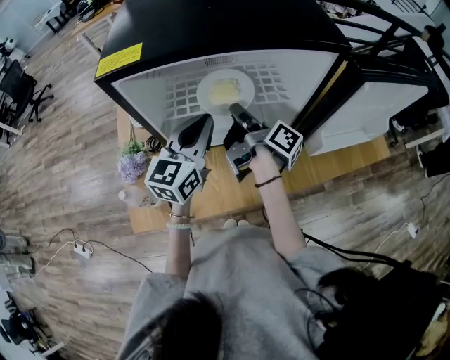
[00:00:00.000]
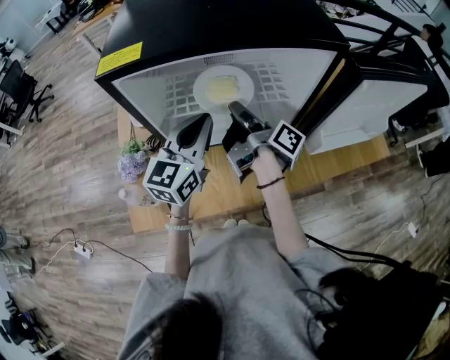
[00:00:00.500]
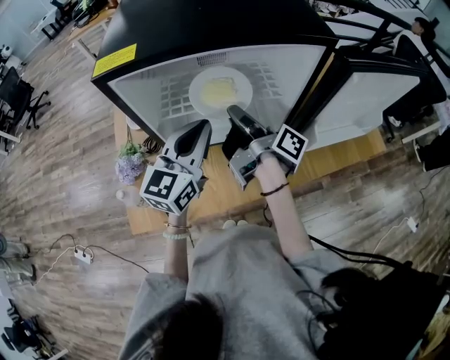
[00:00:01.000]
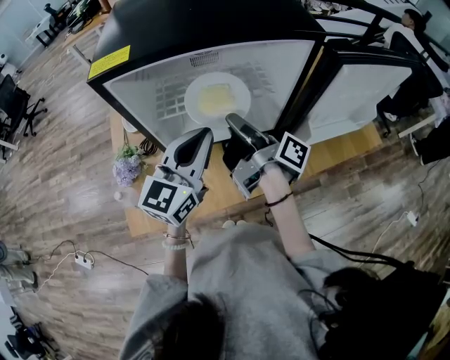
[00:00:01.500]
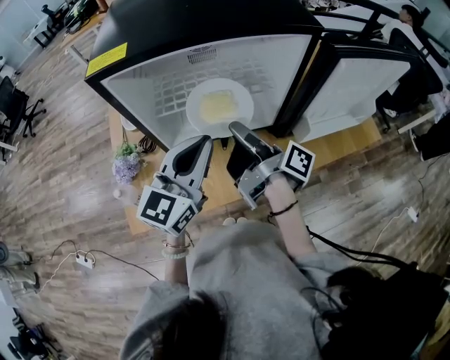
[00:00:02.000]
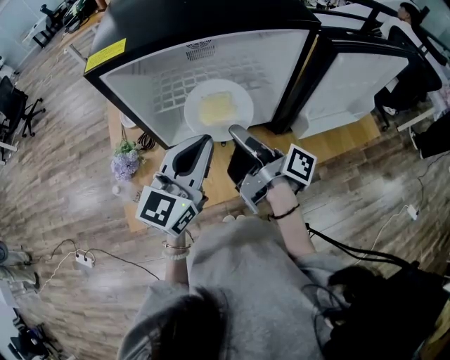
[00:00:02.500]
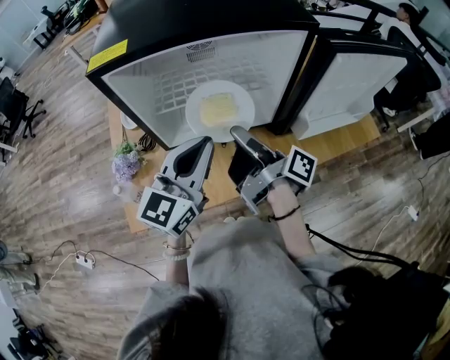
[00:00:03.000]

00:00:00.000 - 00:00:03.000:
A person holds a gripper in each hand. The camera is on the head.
00:00:00.000 - 00:00:01.500: The grippers both shift backward by approximately 5 cm.
00:00:01.500 - 00:00:03.000: The right gripper is displaced backward by about 5 cm.

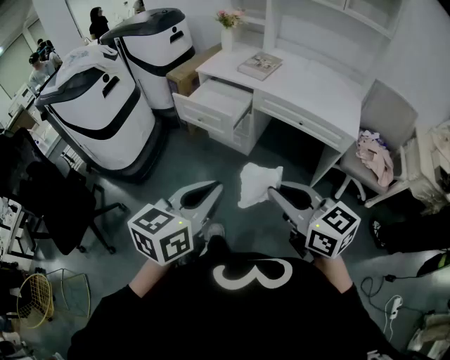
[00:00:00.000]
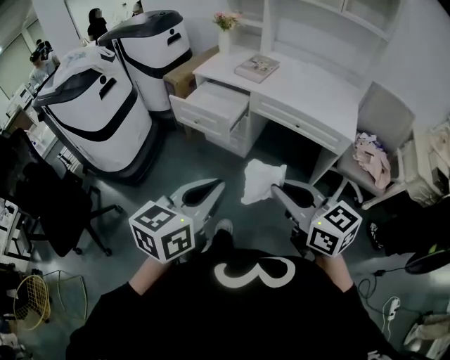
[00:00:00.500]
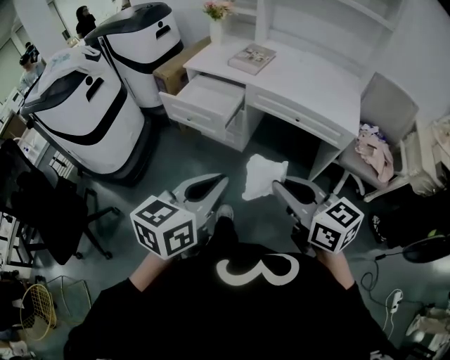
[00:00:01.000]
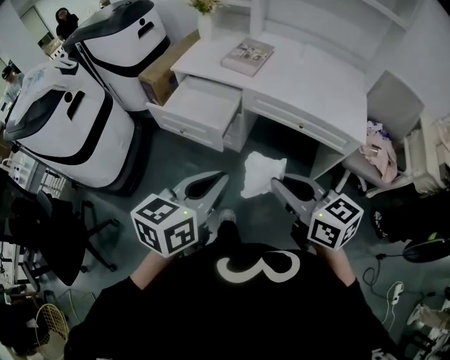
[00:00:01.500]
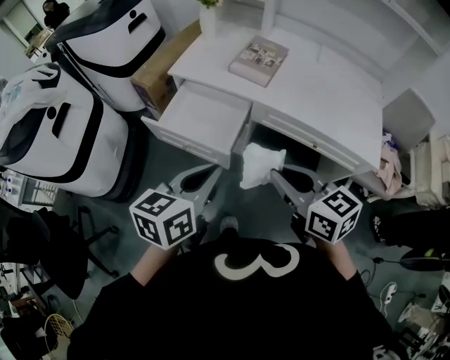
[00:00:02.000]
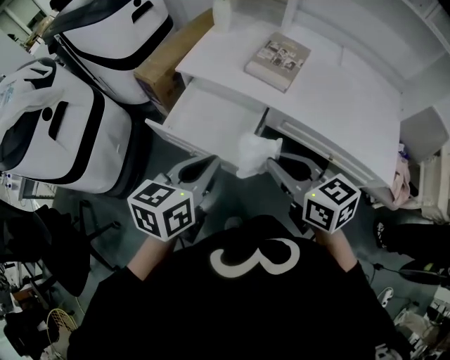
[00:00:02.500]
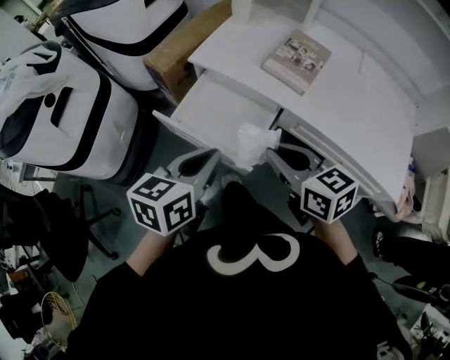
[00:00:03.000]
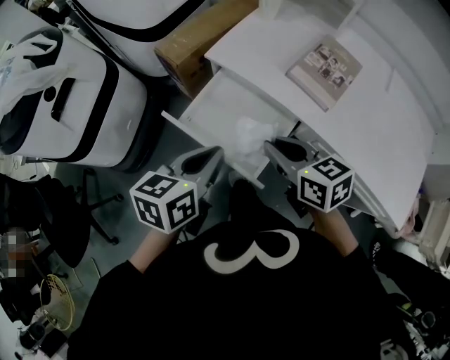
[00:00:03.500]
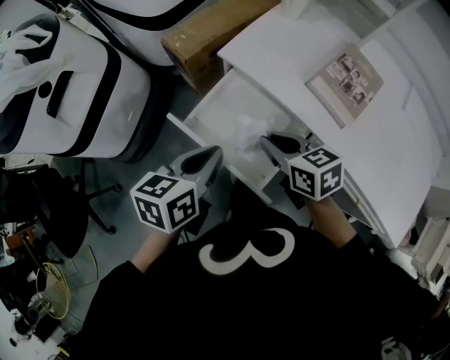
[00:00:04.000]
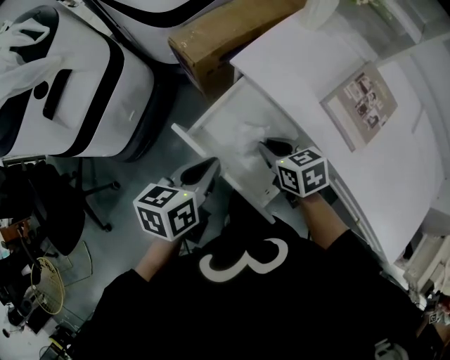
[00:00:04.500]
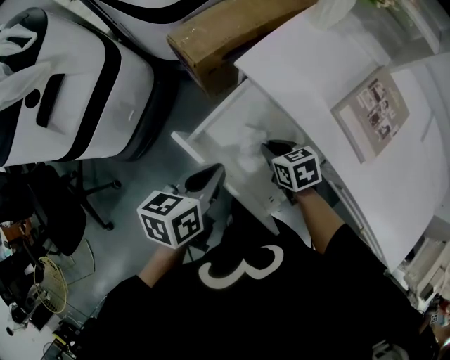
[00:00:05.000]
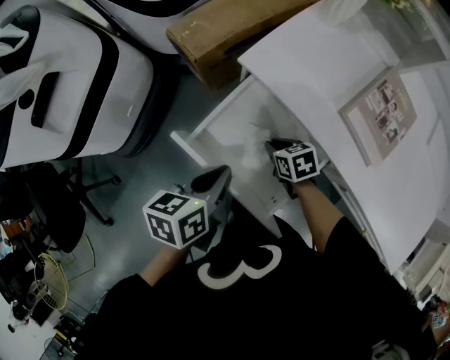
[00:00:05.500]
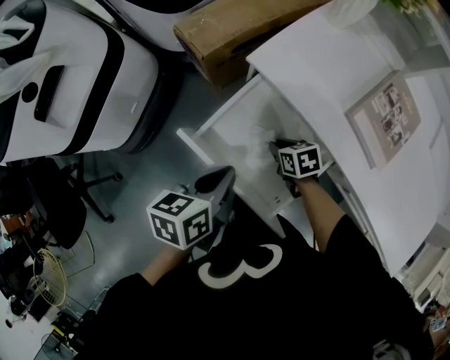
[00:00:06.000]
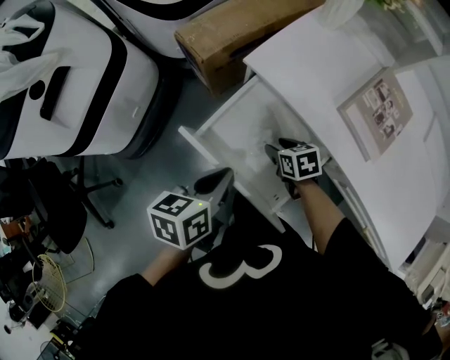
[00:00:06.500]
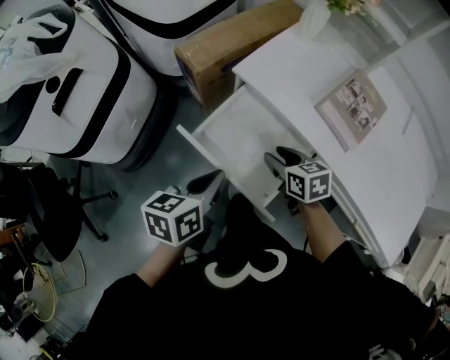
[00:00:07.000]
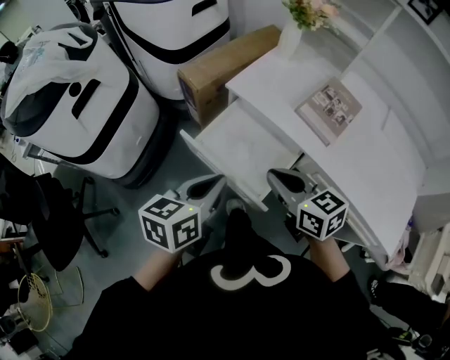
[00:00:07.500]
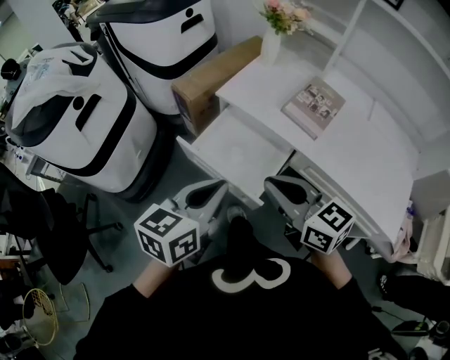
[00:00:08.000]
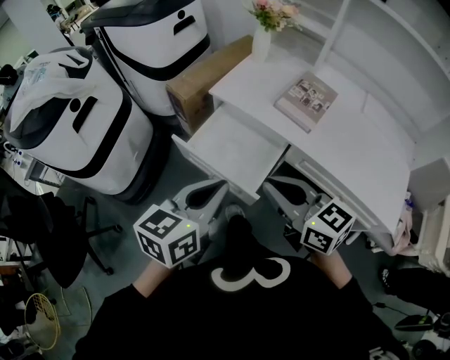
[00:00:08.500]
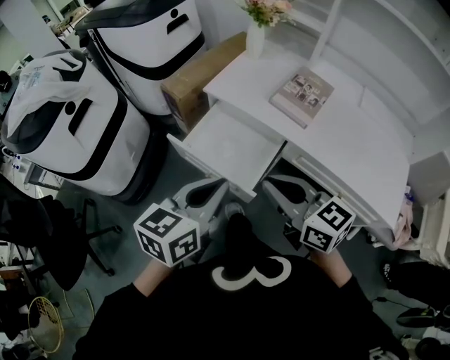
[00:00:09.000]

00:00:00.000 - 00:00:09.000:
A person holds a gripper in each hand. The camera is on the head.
00:00:00.000 - 00:00:02.000: The grippers both shift forward by roughly 40 cm.
00:00:02.000 - 00:00:04.500: The left gripper heads forward, downward and to the left, covering about 35 cm, and rotates some 30 degrees; the right gripper is displaced forward and downward by approximately 40 cm, and swivels some 30 degrees.
00:00:04.500 - 00:00:07.000: The right gripper reaches about 15 cm downward, then returns, and opens.
00:00:07.000 - 00:00:09.000: The left gripper goes roughly 20 cm upward, backward and to the right, and turns by some 30 degrees, while the right gripper shifts roughly 30 cm upward and backward, angles its fingers upward, by some 30 degrees, and closes its fingers.

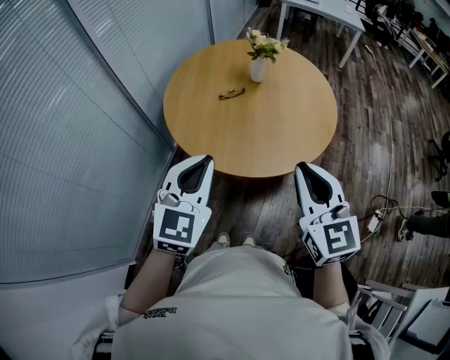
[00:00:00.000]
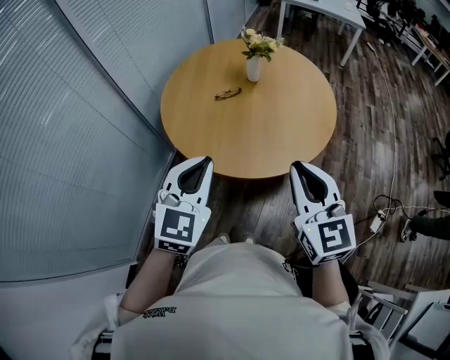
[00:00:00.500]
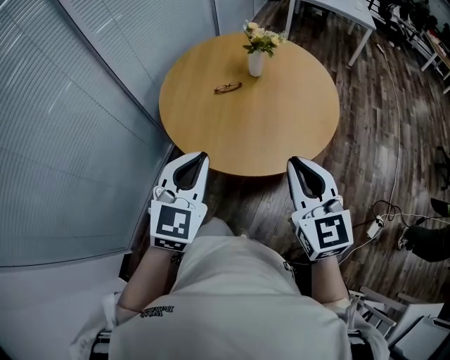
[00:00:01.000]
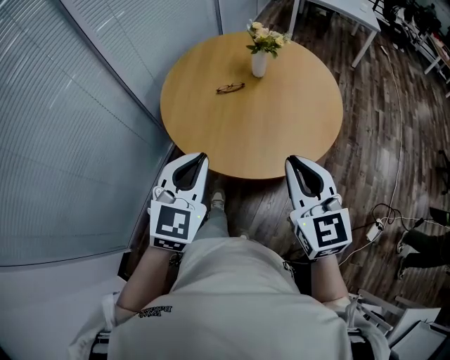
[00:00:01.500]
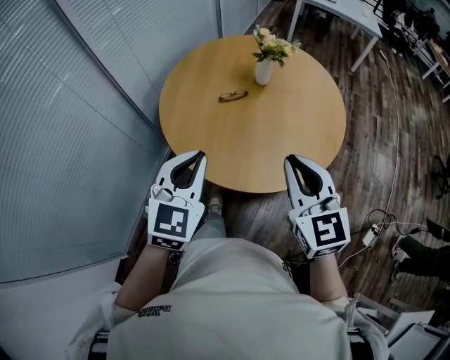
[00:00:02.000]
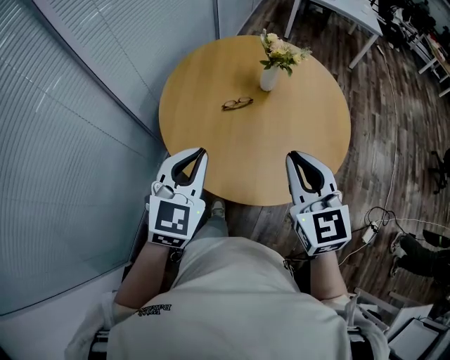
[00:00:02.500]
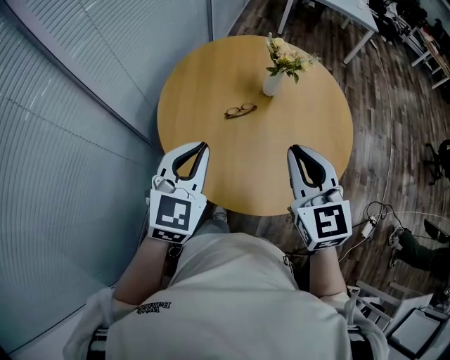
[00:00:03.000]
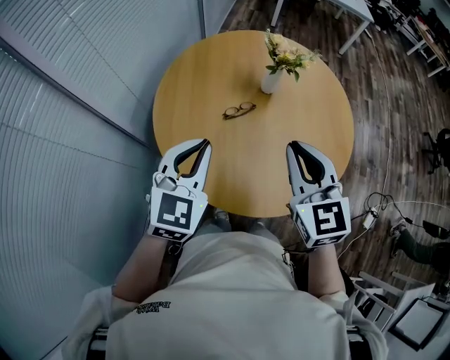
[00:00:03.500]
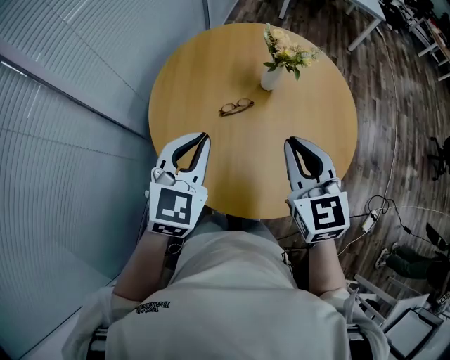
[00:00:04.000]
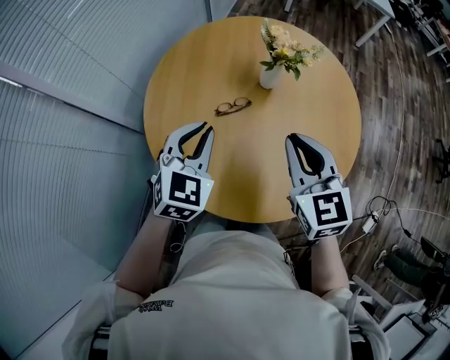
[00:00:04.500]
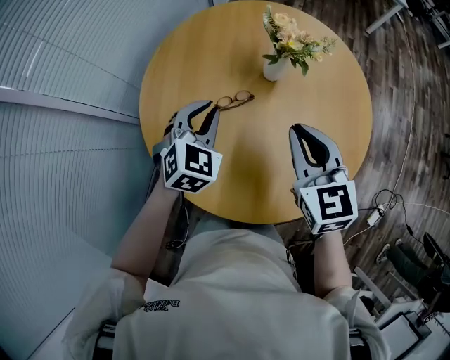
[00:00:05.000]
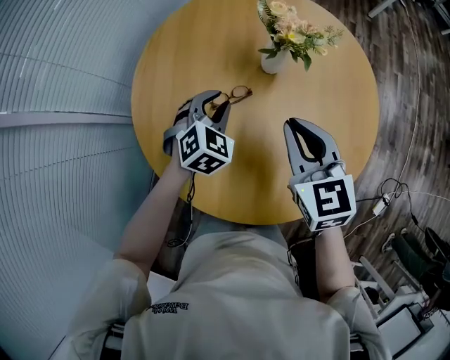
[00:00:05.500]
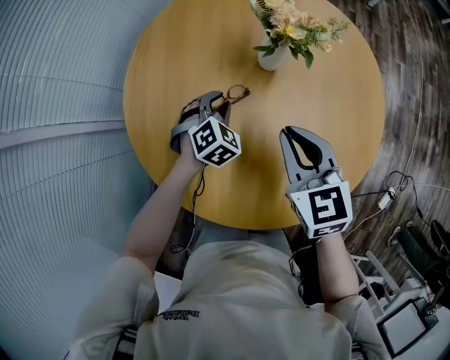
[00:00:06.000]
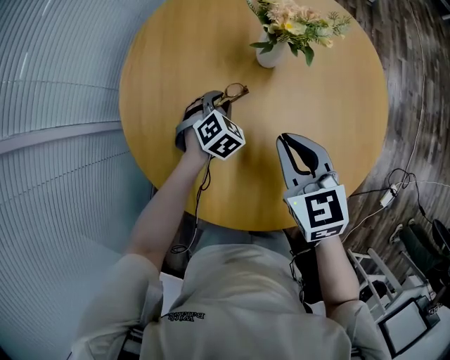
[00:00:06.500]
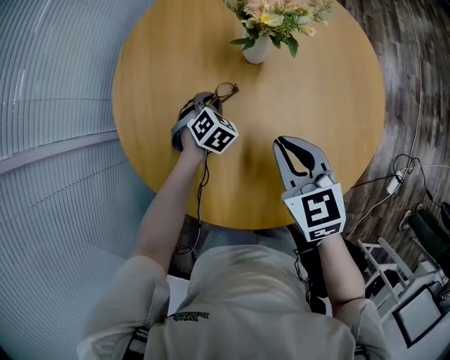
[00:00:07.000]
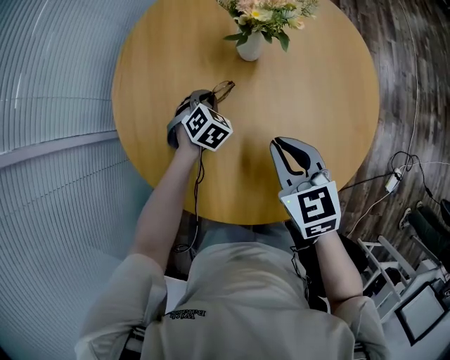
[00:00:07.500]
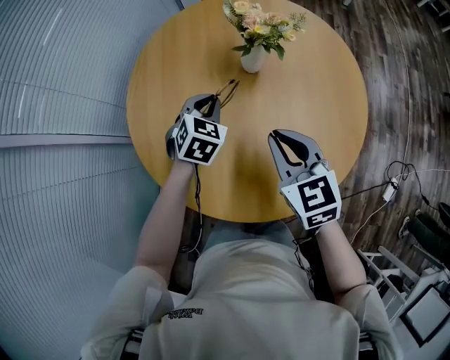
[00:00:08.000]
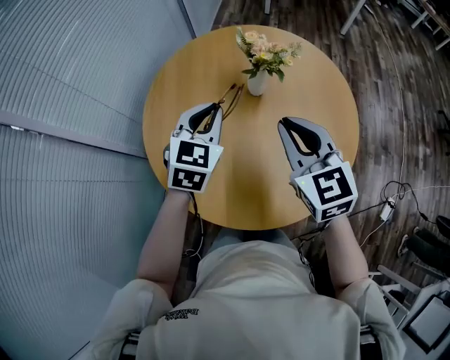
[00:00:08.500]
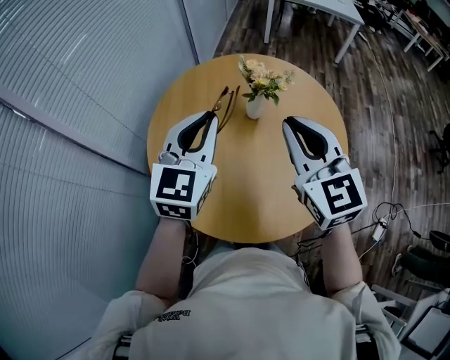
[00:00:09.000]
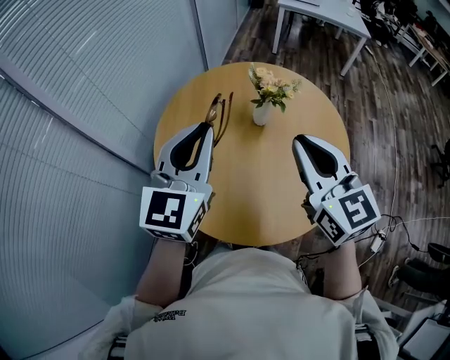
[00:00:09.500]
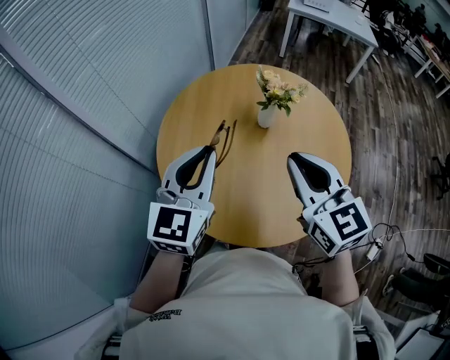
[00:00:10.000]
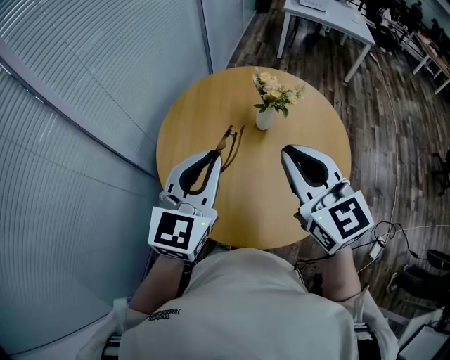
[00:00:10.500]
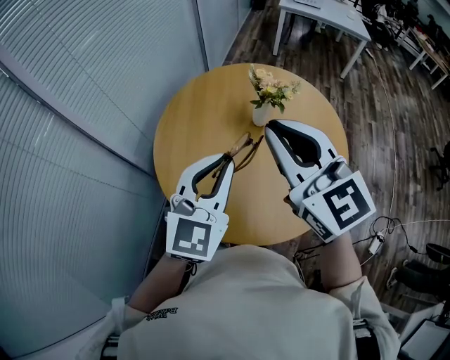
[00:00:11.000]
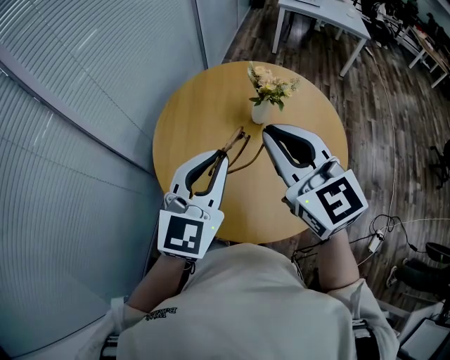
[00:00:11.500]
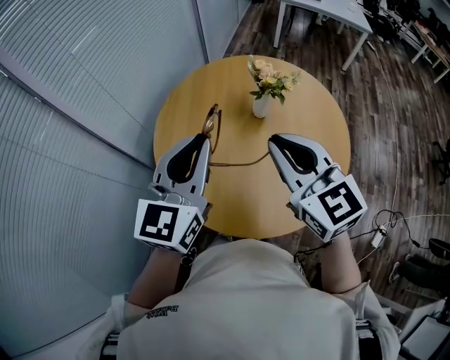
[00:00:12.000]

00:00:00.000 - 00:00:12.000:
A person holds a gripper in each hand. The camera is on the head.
00:00:00.000 - 00:00:02.000: The grippers both shift forward by roughly 10 cm.
00:00:02.000 - 00:00:04.000: The two grippers go some 20 cm forward.
00:00:04.000 - 00:00:06.000: The right gripper moves downward and forward, approximately 20 cm. The left gripper moves downward and forward, approximately 35 cm, and tilts its fingers about 30 degrees downward.
00:00:06.000 - 00:00:08.000: The right gripper travels backward by some 5 cm. The left gripper is displaced upward by approximately 10 cm.
00:00:08.000 - 00:00:10.000: The right gripper moves upward, approximately 20 cm. Meanwhile the left gripper goes roughly 35 cm upward and backward, and tips its fingers upward by roughly 40 degrees.
00:00:10.000 - 00:00:12.000: The right gripper reaches approximately 10 cm upward, then returns.

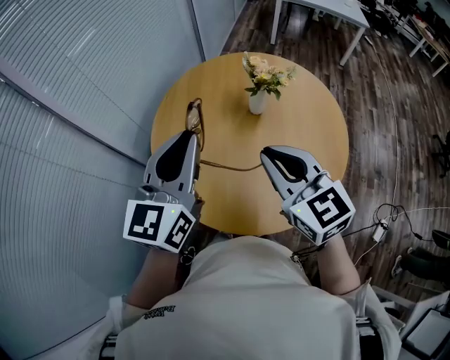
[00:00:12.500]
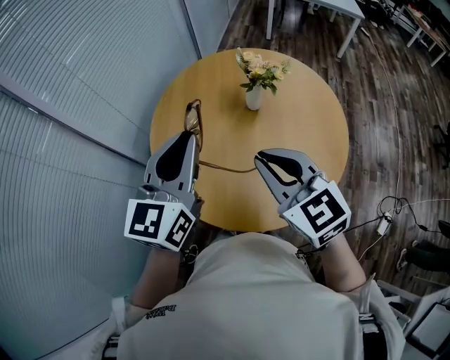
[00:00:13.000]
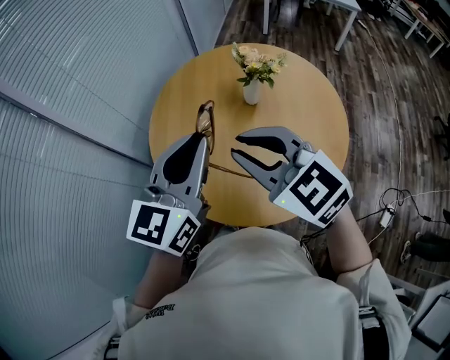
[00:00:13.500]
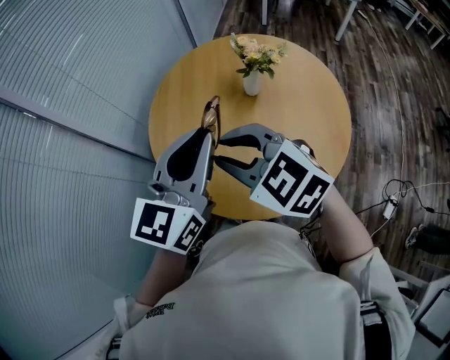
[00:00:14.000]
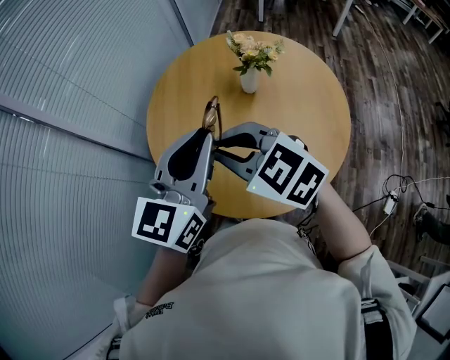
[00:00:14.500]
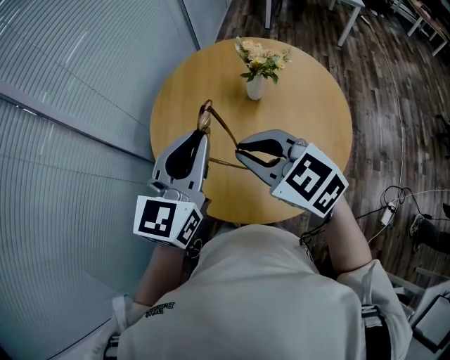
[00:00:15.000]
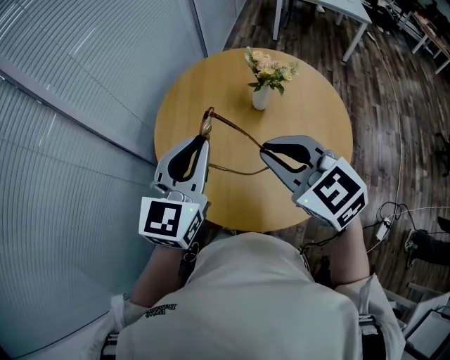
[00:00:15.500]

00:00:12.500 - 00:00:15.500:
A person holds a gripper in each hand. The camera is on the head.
00:00:12.500 - 00:00:14.000: The left gripper ends up roughly 5 cm from where it was; the right gripper moves to the left, approximately 10 cm, and changes its angle by approximately 30 degrees.
00:00:14.000 - 00:00:15.500: The right gripper goes approximately 5 cm to the right.
